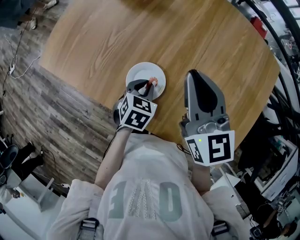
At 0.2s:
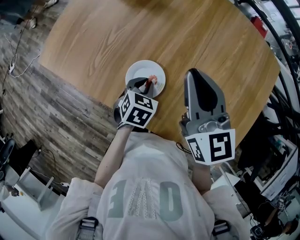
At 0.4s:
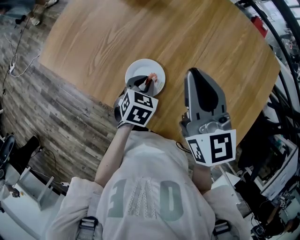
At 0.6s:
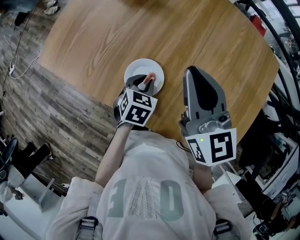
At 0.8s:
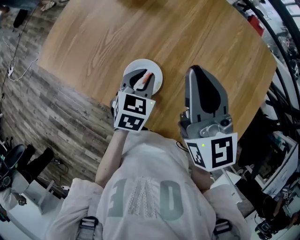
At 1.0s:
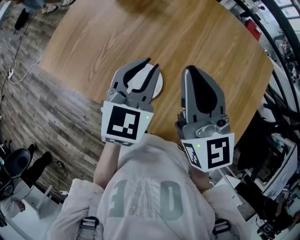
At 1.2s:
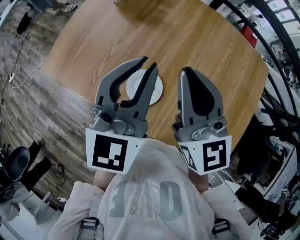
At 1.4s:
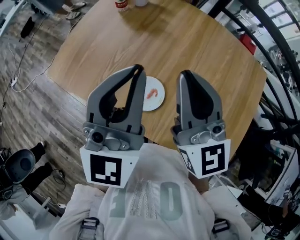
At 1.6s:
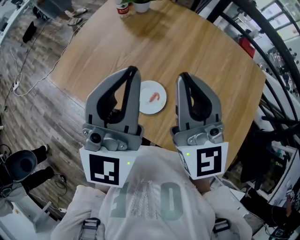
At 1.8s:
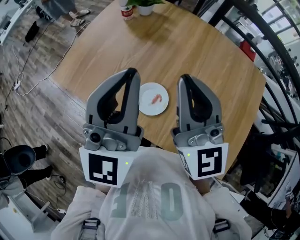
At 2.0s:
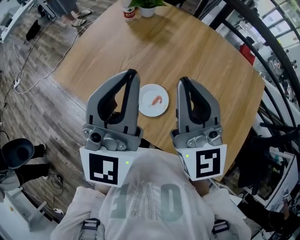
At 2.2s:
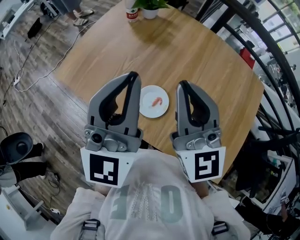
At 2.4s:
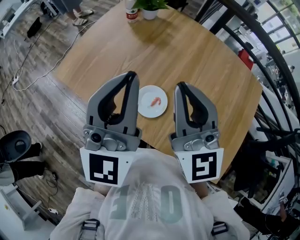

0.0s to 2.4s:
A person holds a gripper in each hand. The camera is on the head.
0.0s to 1.2s: The left gripper goes roughly 30 cm upward, and angles its fingers upward, by approximately 50 degrees. The right gripper goes roughly 10 cm upward.
1.2s to 2.4s: The left gripper is displaced upward and to the left by about 10 cm. The right gripper moves to the left and upward, about 10 cm.

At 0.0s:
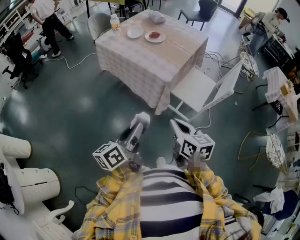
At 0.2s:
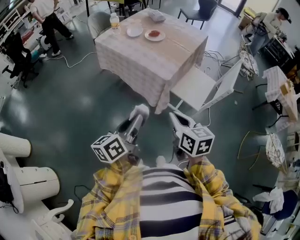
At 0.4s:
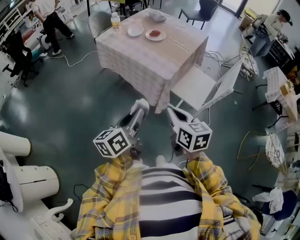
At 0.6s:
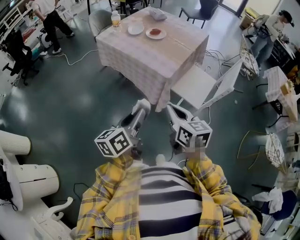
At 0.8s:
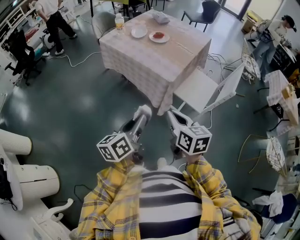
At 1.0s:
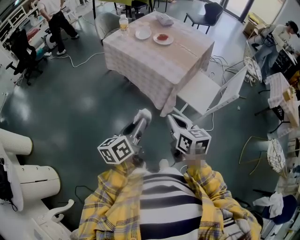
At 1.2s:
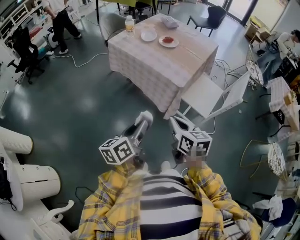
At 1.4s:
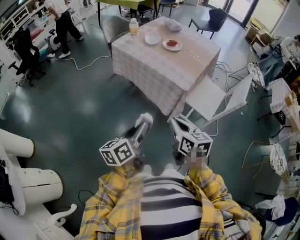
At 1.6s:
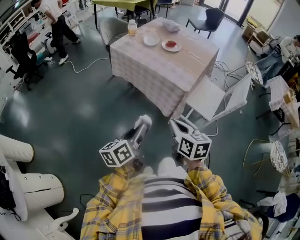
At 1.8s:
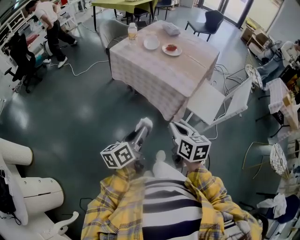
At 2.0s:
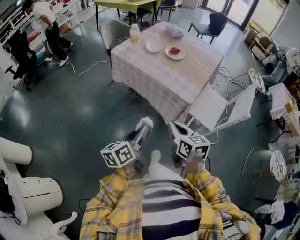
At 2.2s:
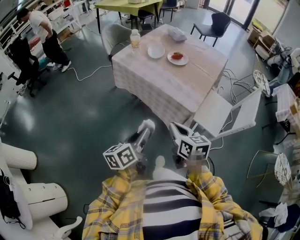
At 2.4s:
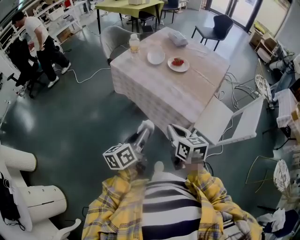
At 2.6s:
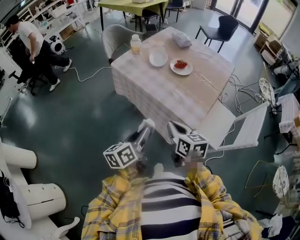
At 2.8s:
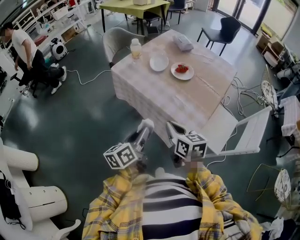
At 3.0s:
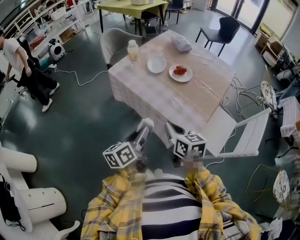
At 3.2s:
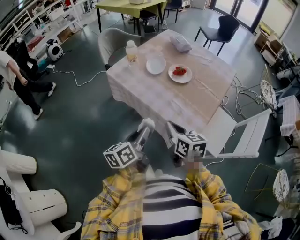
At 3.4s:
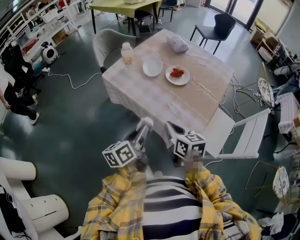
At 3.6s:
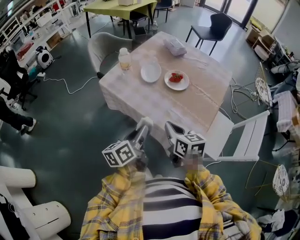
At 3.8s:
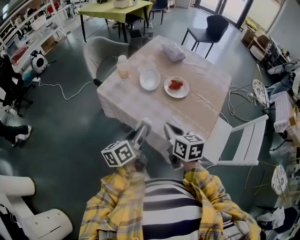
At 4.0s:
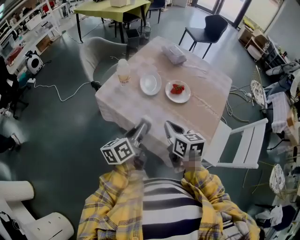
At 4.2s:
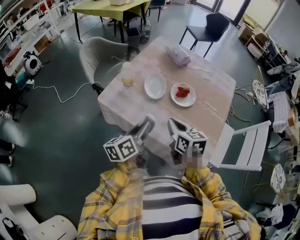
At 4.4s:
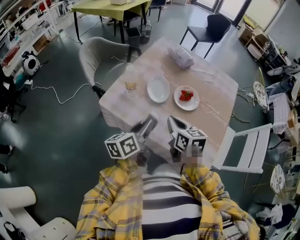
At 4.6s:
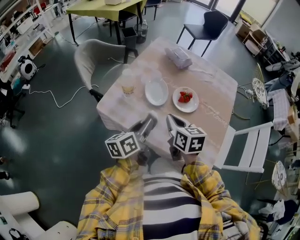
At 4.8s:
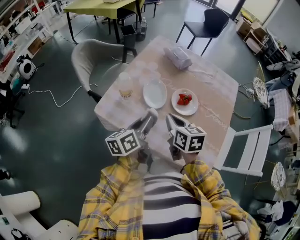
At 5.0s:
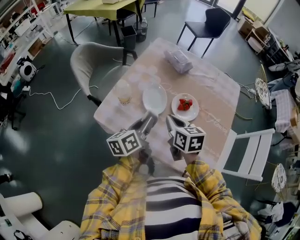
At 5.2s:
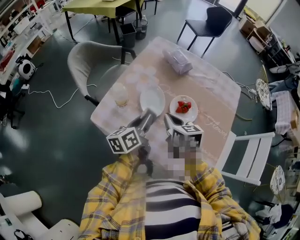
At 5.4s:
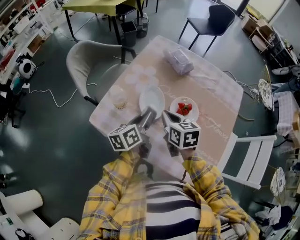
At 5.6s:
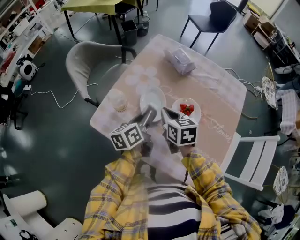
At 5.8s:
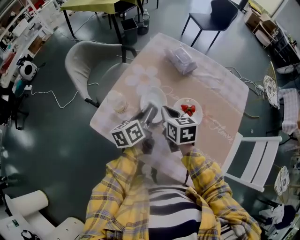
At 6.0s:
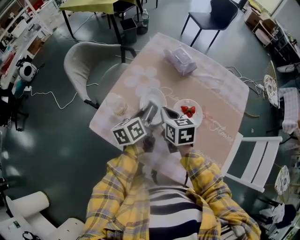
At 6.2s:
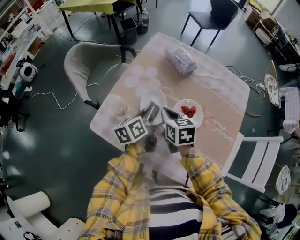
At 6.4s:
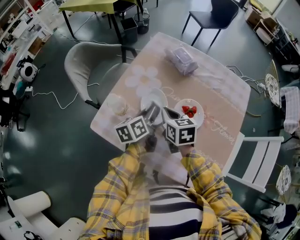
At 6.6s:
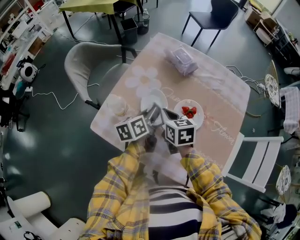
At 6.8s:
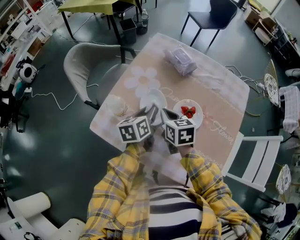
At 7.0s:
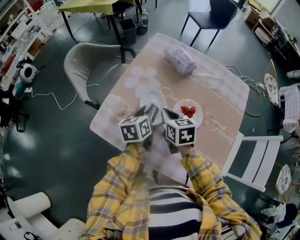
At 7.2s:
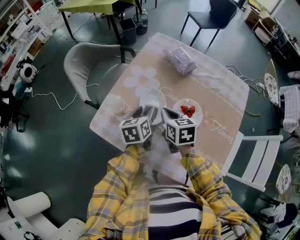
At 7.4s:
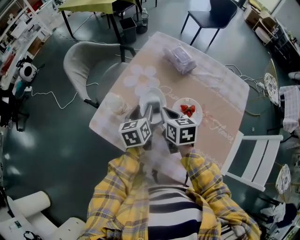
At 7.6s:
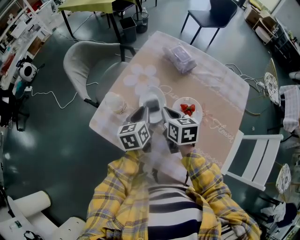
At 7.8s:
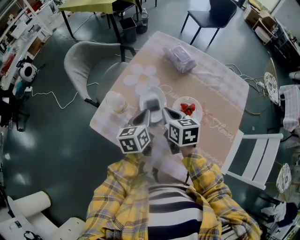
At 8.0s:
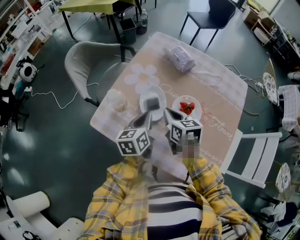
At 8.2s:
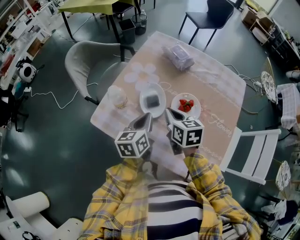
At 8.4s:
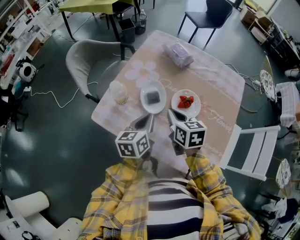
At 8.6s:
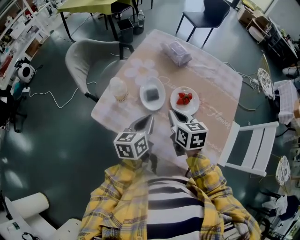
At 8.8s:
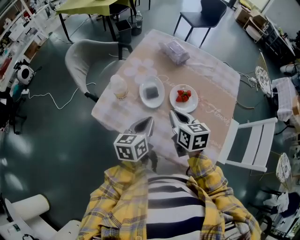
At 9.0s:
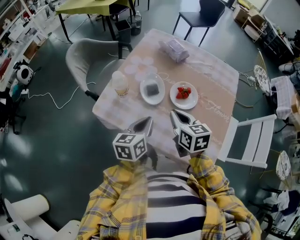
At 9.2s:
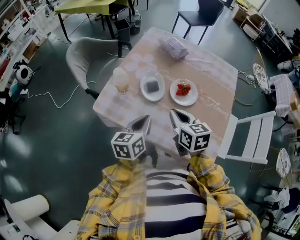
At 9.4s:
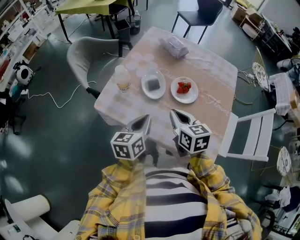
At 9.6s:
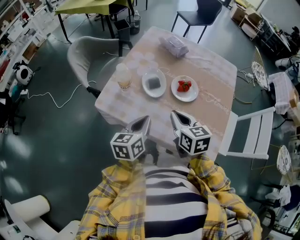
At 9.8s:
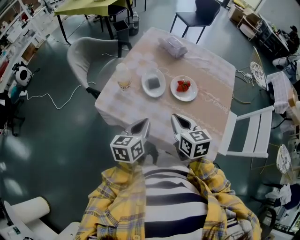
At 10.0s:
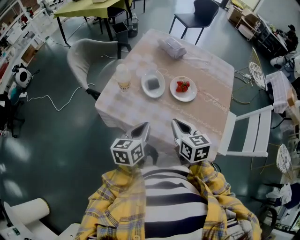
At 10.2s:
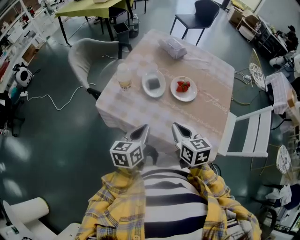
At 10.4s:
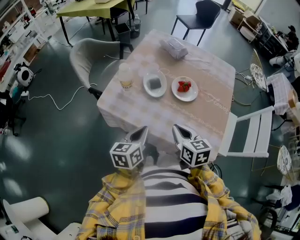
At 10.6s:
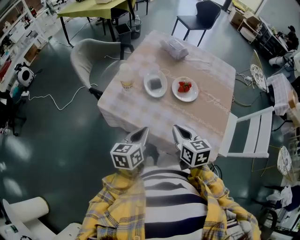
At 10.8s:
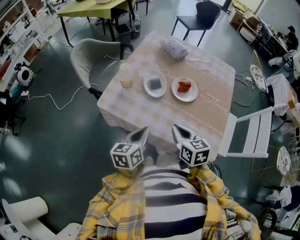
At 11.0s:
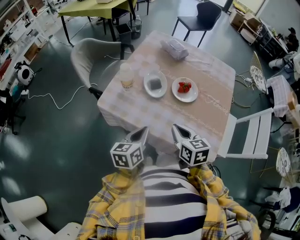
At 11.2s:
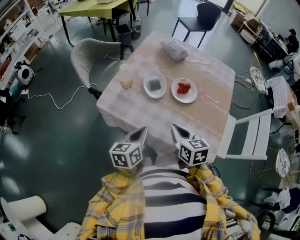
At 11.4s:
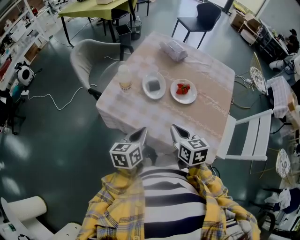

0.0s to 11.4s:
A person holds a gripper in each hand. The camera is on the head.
0.0s to 1.4s: The grippers both shift to the left by roughly 10 cm.
1.4s to 2.8s: Both grippers move forward, some 25 cm.
2.8s to 4.2s: The grippers both shift forward by approximately 25 cm.
4.2s to 5.6s: The grippers both shift forward by some 20 cm.
5.6s to 7.2s: The left gripper changes its angle by approximately 20 degrees, and opens.
7.2s to 8.6s: Both grippers move backward, some 10 cm. The left gripper closes its fingers.
8.6s to 10.0s: The grippers both shift backward by roughly 10 cm.
10.0s to 11.4s: The grippers move only a little.

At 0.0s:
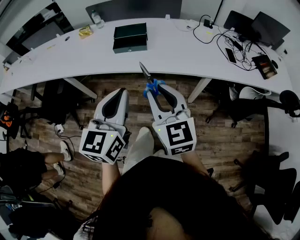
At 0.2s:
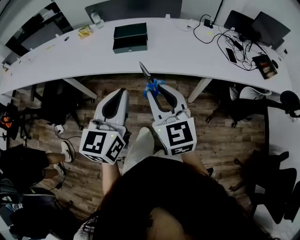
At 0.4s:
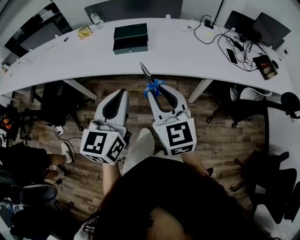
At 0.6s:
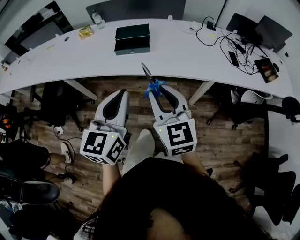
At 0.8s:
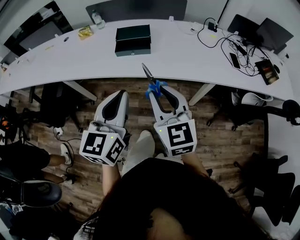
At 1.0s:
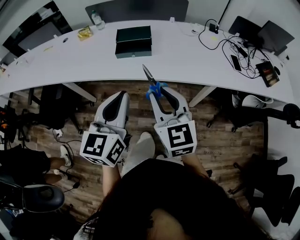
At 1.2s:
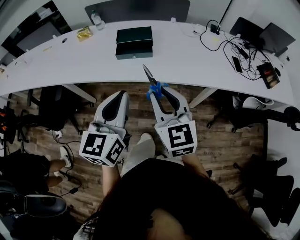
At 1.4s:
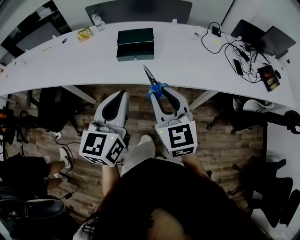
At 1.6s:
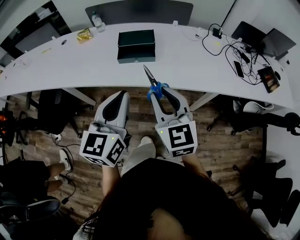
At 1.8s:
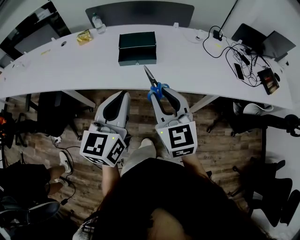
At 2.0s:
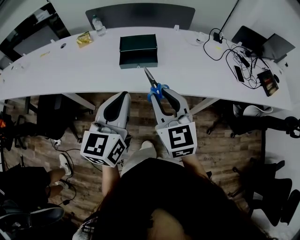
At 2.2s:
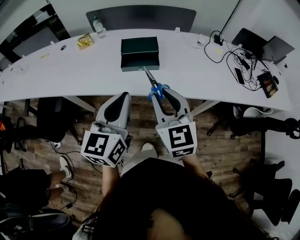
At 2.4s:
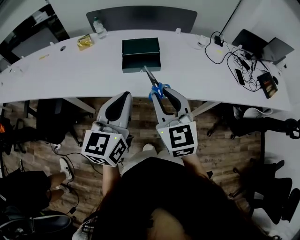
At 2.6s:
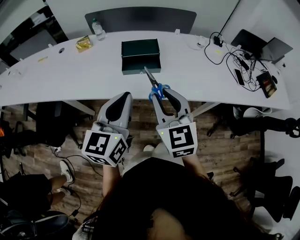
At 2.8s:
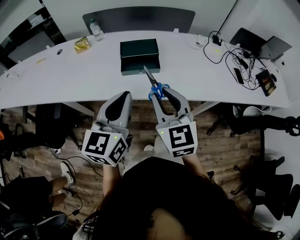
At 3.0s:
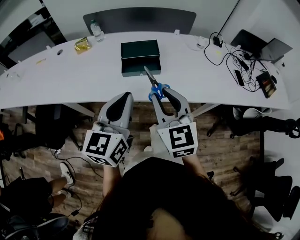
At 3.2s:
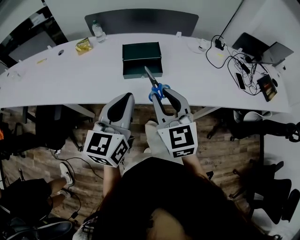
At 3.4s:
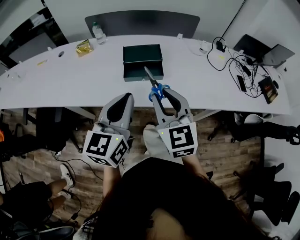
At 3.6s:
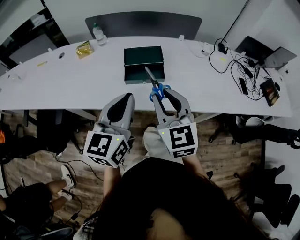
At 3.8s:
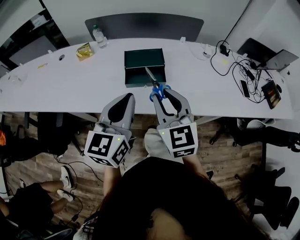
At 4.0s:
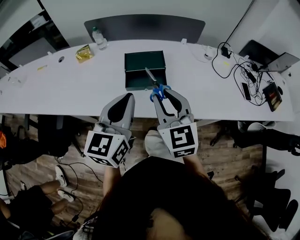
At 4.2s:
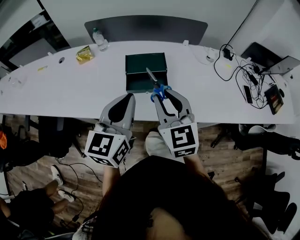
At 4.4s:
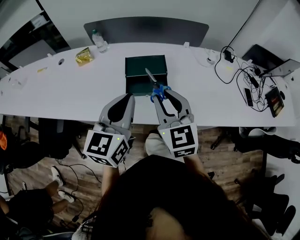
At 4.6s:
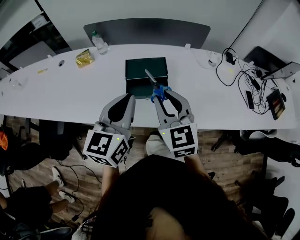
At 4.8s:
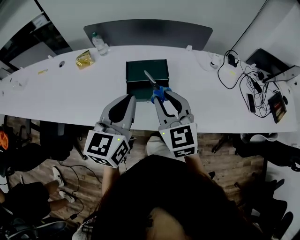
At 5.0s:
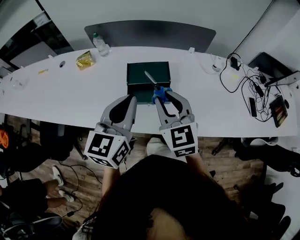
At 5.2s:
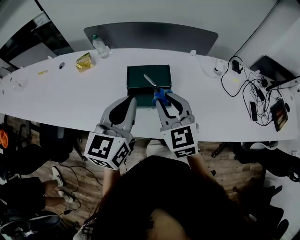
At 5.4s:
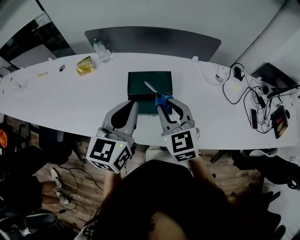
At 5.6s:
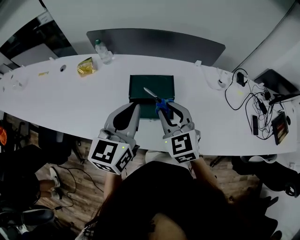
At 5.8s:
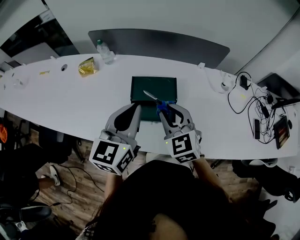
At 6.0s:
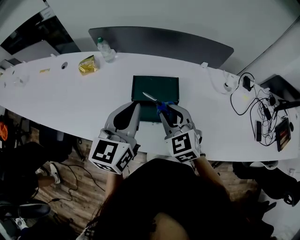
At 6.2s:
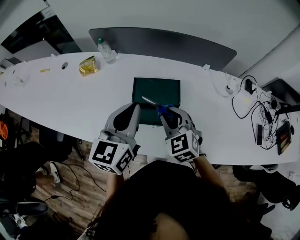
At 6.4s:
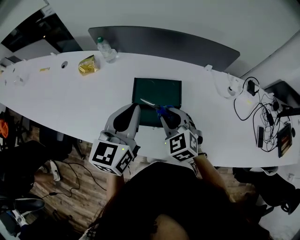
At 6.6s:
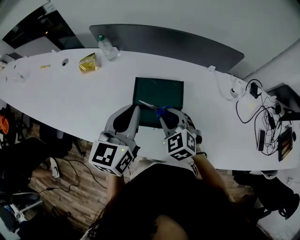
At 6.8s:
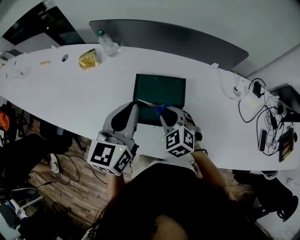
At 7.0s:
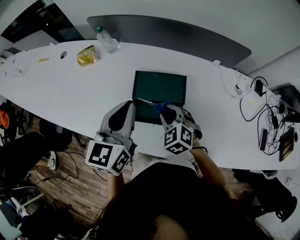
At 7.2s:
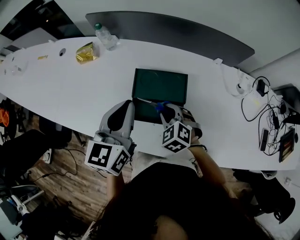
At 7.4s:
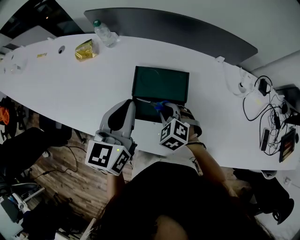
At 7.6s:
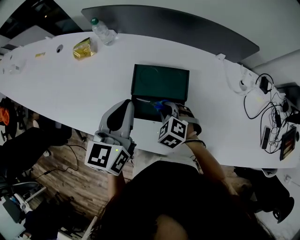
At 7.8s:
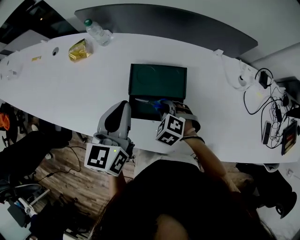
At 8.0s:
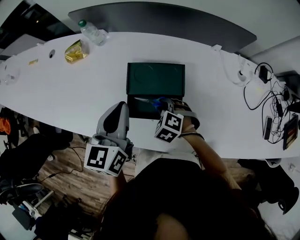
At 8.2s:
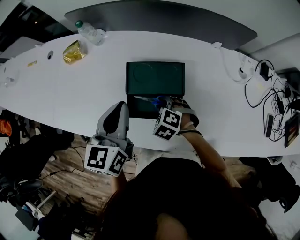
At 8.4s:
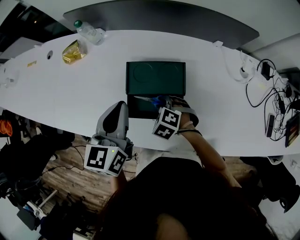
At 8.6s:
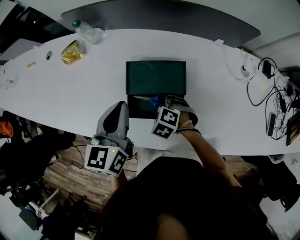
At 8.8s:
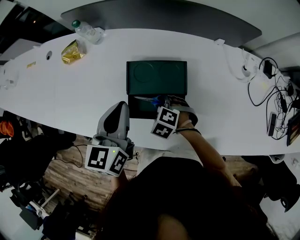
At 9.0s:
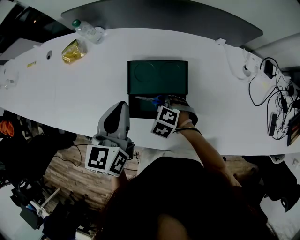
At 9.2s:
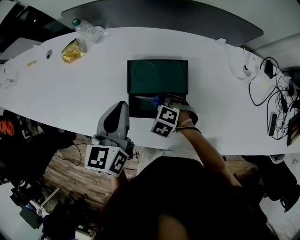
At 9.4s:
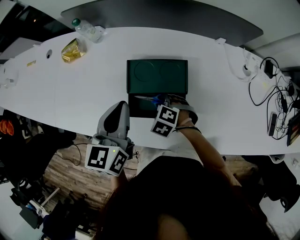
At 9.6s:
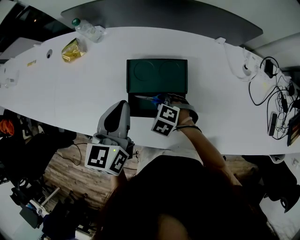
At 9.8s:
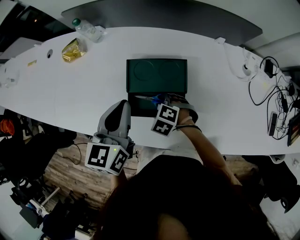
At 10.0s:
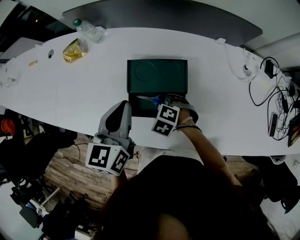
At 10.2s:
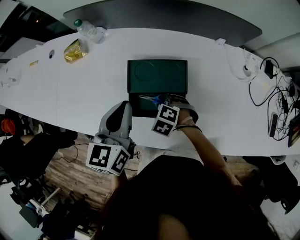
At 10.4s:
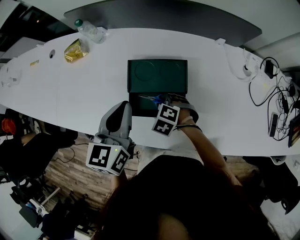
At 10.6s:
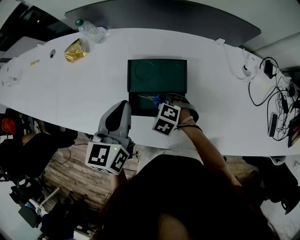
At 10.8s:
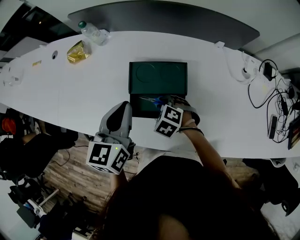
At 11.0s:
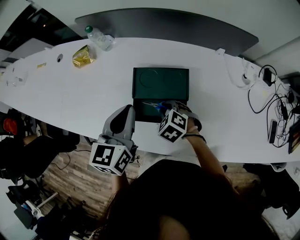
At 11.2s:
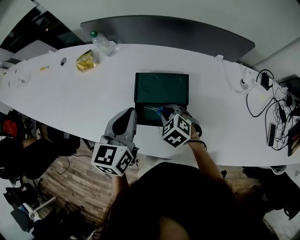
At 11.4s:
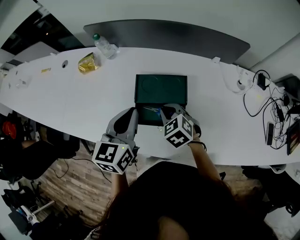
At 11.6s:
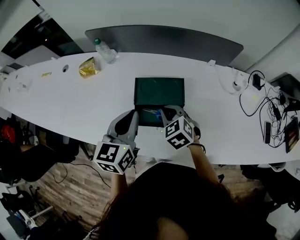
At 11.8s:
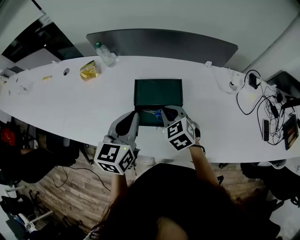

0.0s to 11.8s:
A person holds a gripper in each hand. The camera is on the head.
0.0s to 1.4s: Both grippers move forward and to the left, some 10 cm.
1.4s to 3.0s: Both grippers move forward and to the left, about 10 cm.
3.0s to 4.4s: Both grippers travel together forward, roughly 15 cm.
4.4s to 6.0s: The left gripper moves forward, some 15 cm. Meanwhile the right gripper is displaced forward and downward by some 20 cm, and turns by some 20 degrees.
6.0s to 7.4s: The left gripper is displaced forward and downward by some 10 cm; the right gripper shifts some 15 cm downward, and swivels roughly 30 degrees.
7.4s to 8.8s: The right gripper travels downward by roughly 5 cm.
8.8s to 10.4s: Both grippers stay about where they are.
10.4s to 11.8s: The left gripper is displaced backward by some 5 cm; the right gripper travels upward by about 15 cm, tips its fingers upward by some 30 degrees, and closes its fingers.
